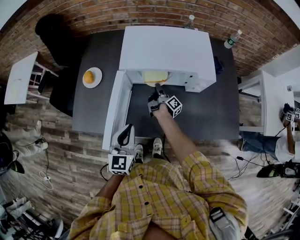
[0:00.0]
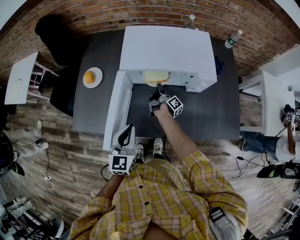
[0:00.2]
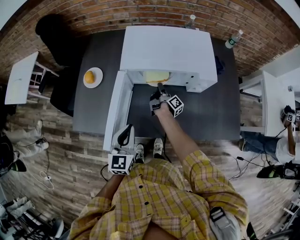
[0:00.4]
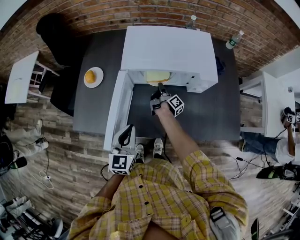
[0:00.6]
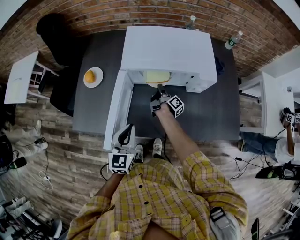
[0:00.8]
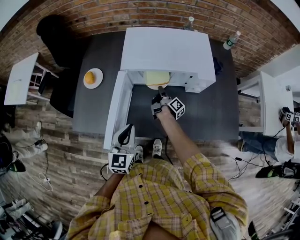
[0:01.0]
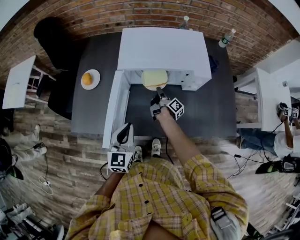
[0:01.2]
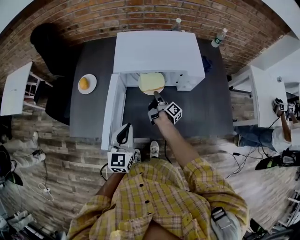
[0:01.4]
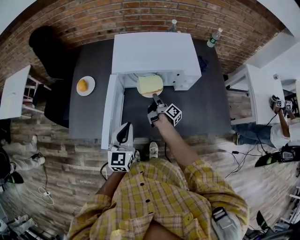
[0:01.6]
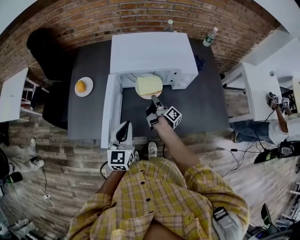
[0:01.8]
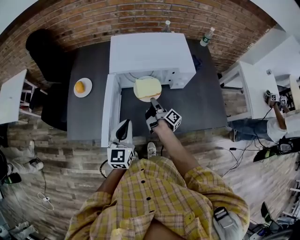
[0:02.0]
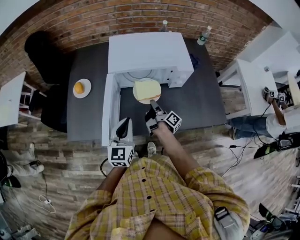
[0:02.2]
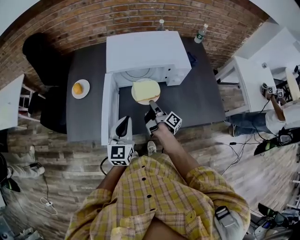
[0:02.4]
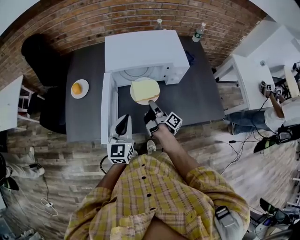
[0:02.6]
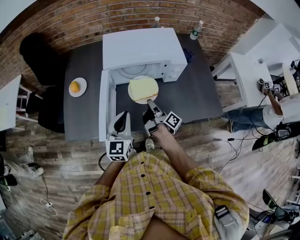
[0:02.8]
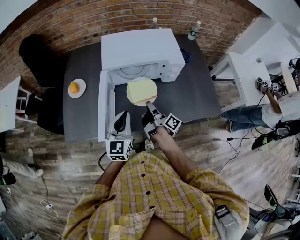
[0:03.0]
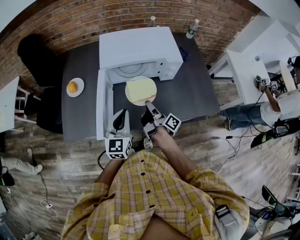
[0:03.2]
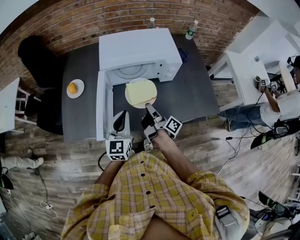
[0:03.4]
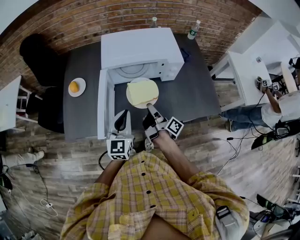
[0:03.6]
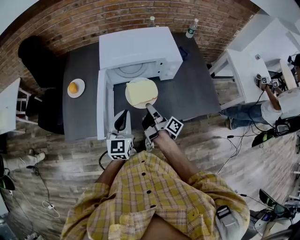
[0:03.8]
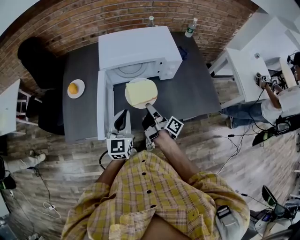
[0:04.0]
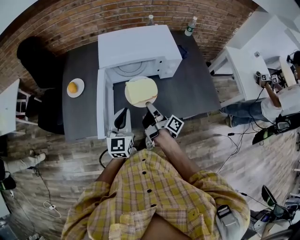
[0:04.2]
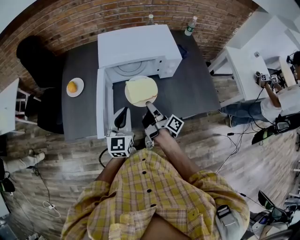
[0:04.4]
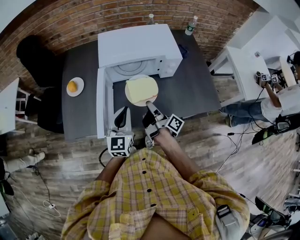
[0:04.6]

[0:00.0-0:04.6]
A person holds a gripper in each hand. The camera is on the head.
0:00.0 to 0:01.6: The right gripper heads backward, covering some 5 cm.
0:01.6 to 0:03.0: The right gripper heads backward and upward, covering some 15 cm.
0:03.0 to 0:04.6: The grippers make only small movements.

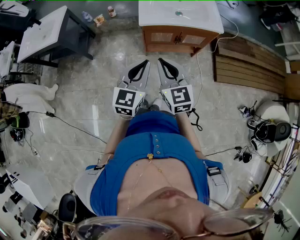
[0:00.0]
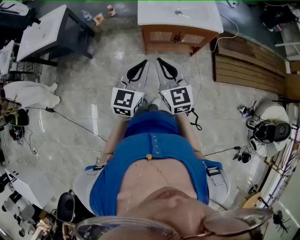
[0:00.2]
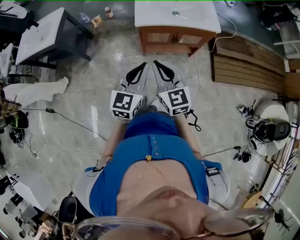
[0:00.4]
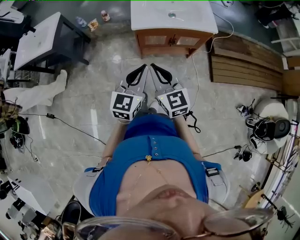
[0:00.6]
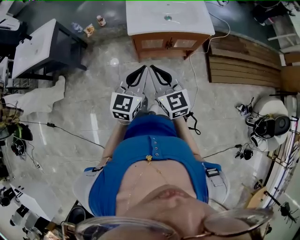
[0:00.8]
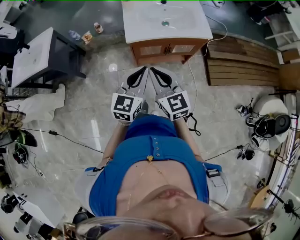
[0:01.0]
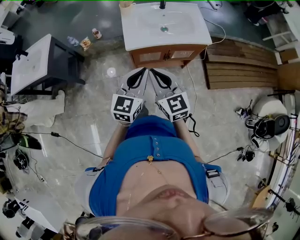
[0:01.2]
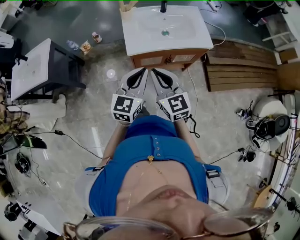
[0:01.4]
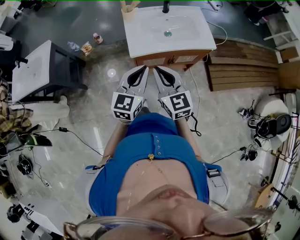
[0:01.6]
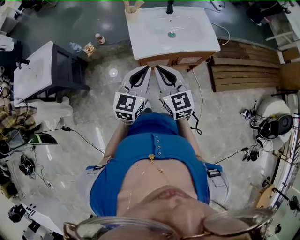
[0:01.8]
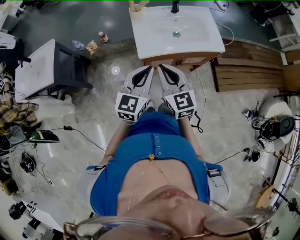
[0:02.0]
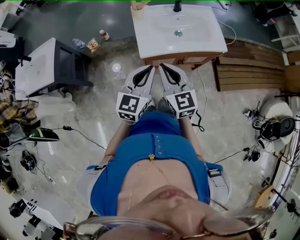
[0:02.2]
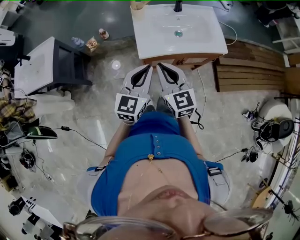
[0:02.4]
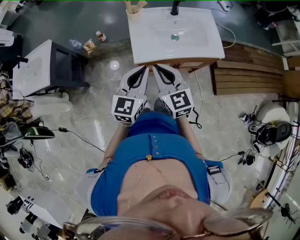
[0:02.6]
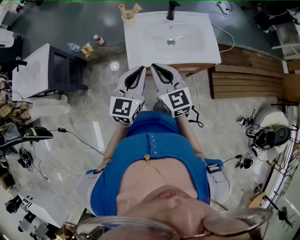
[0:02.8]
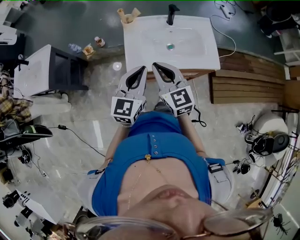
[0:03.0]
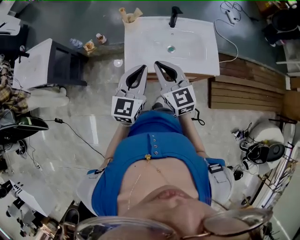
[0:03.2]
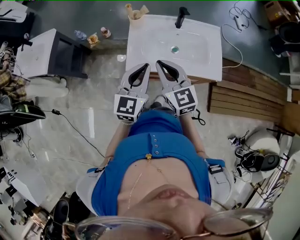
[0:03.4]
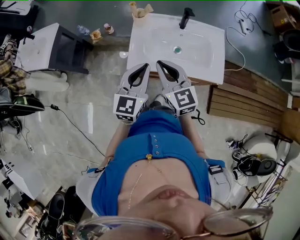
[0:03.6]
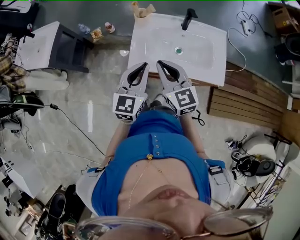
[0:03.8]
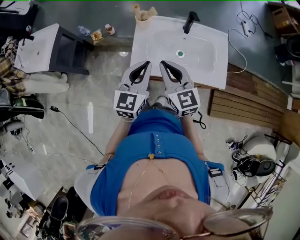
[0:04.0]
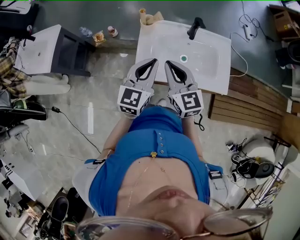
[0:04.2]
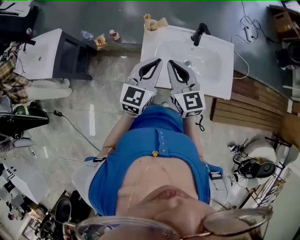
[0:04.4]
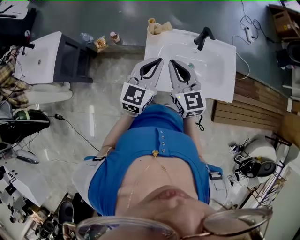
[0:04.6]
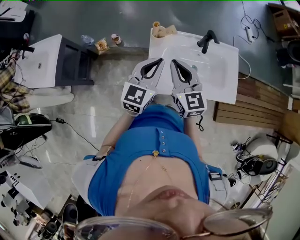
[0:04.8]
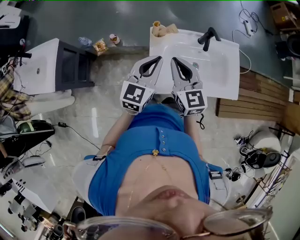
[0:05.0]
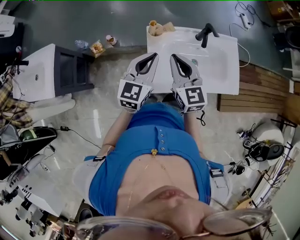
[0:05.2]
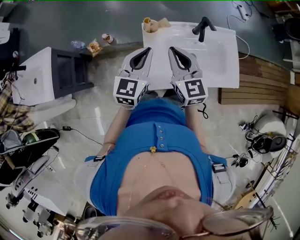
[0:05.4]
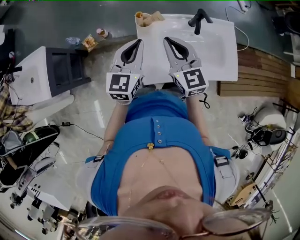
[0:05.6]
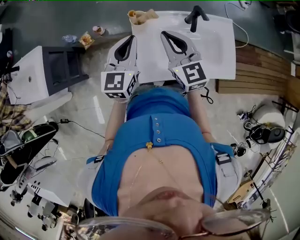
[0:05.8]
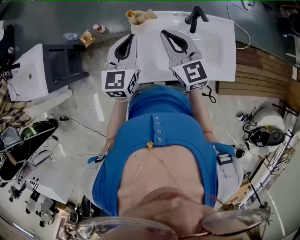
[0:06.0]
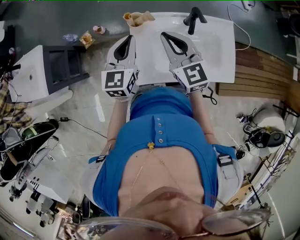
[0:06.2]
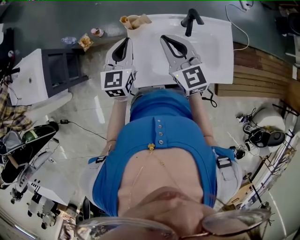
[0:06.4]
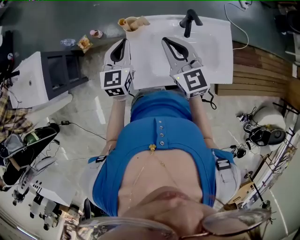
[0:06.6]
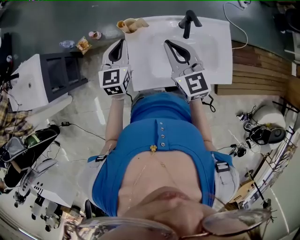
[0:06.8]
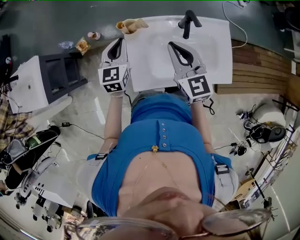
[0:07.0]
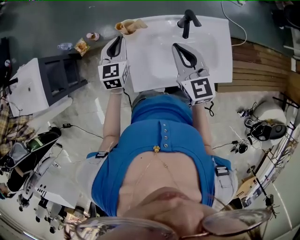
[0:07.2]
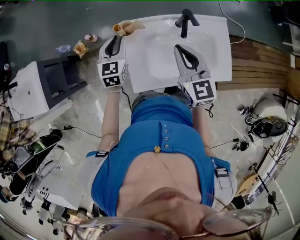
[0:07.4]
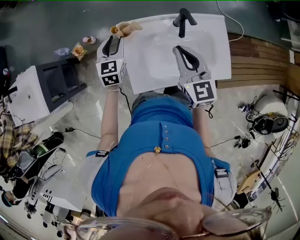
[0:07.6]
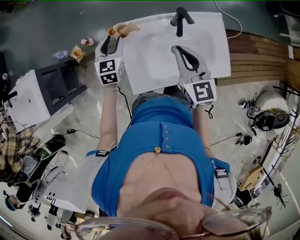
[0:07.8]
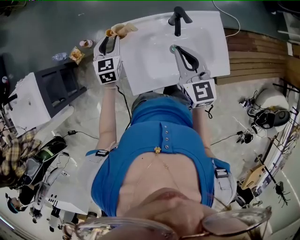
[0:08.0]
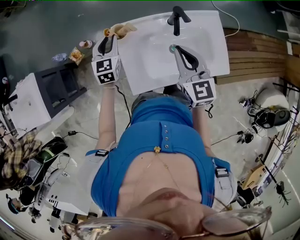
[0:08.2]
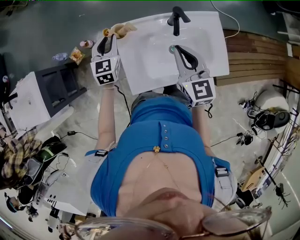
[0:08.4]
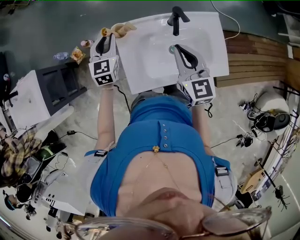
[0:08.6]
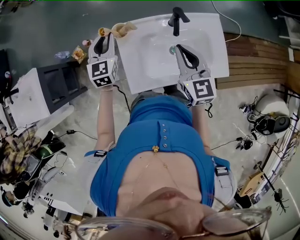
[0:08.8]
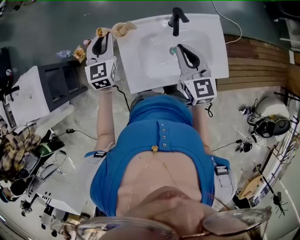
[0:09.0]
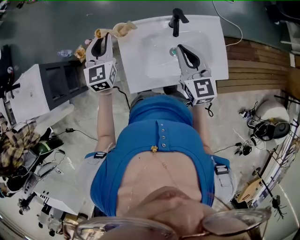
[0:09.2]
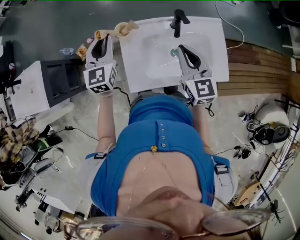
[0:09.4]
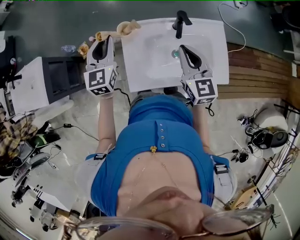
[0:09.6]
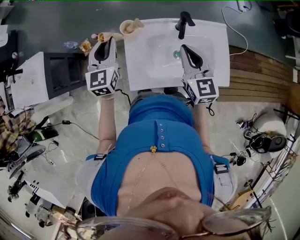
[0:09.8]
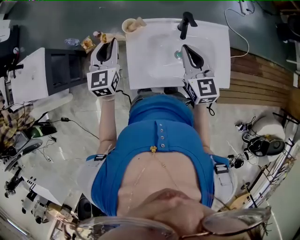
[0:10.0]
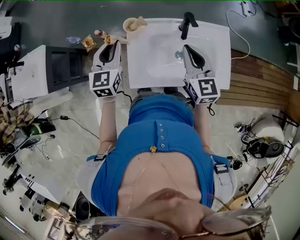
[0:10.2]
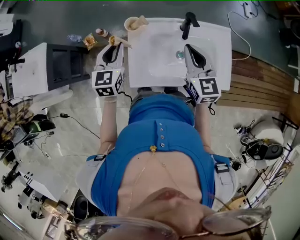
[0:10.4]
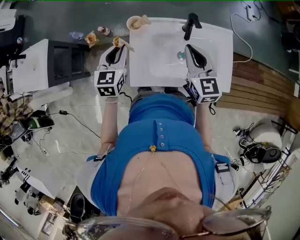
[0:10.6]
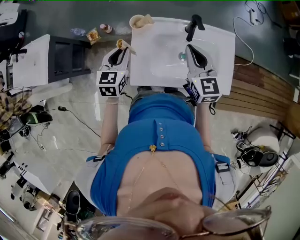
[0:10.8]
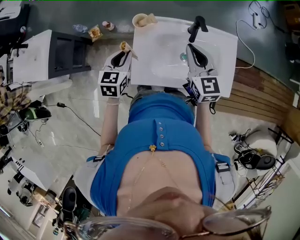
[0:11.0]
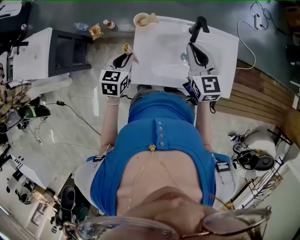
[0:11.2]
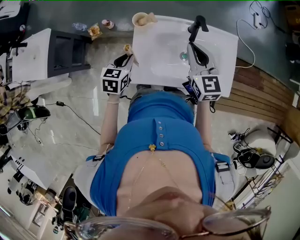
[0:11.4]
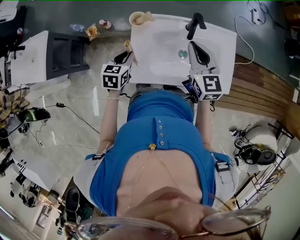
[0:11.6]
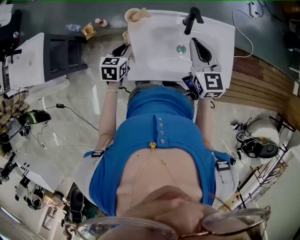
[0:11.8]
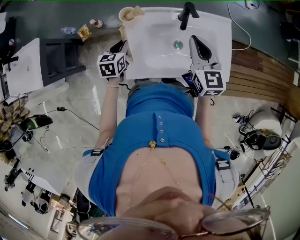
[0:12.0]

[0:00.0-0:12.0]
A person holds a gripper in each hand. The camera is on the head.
0:00.0 to 0:01.6: Both grippers travel together forward, roughly 20 cm.
0:01.6 to 0:03.0: Both grippers travel together forward, some 15 cm.
0:03.0 to 0:04.4: Both grippers travel together forward, some 15 cm.
0:04.4 to 0:06.0: The left gripper goes about 15 cm forward and to the left. Meanwhile the right gripper is displaced forward by approximately 15 cm.
0:06.0 to 0:07.6: The left gripper travels downward and forward by some 15 cm, and opens its fingers, while the right gripper goes roughly 10 cm to the right.
0:07.6 to 0:09.0: The left gripper travels upward by some 10 cm.
0:09.0 to 0:10.4: The left gripper heads backward, covering some 10 cm.
0:10.4 to 0:12.0: The left gripper goes about 15 cm downward, and swivels some 20 degrees.

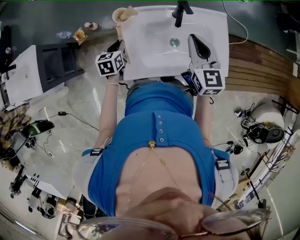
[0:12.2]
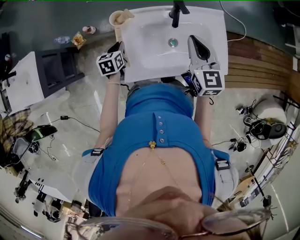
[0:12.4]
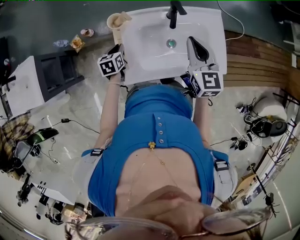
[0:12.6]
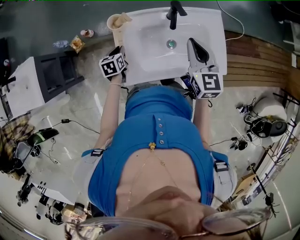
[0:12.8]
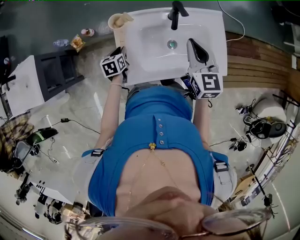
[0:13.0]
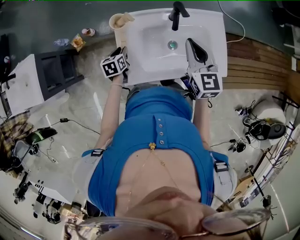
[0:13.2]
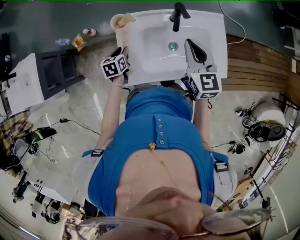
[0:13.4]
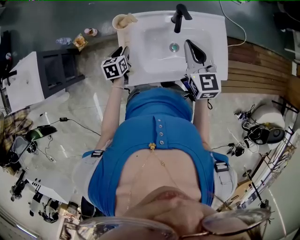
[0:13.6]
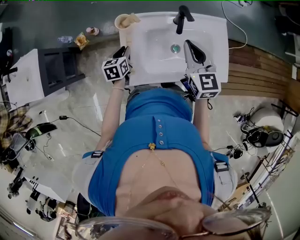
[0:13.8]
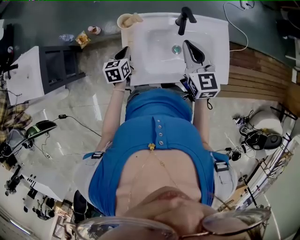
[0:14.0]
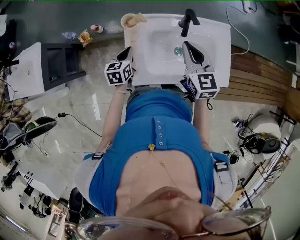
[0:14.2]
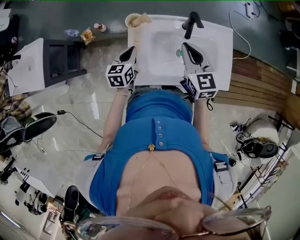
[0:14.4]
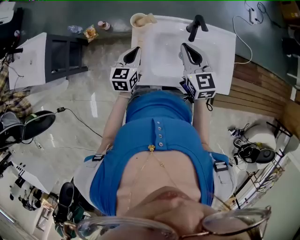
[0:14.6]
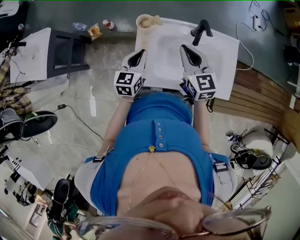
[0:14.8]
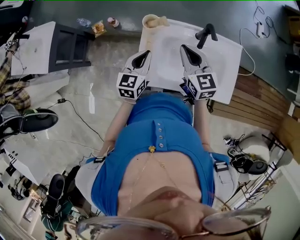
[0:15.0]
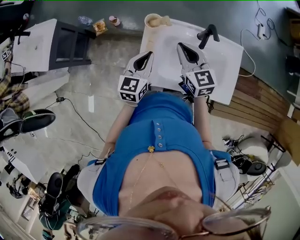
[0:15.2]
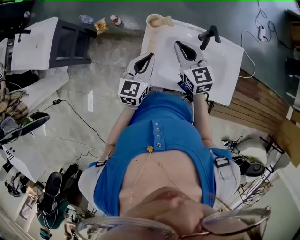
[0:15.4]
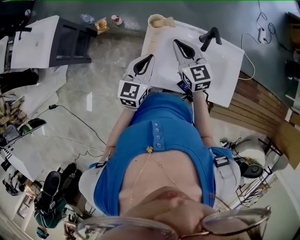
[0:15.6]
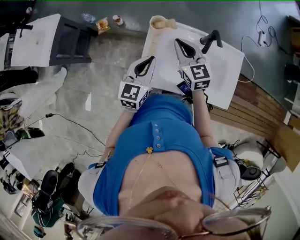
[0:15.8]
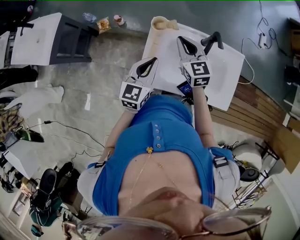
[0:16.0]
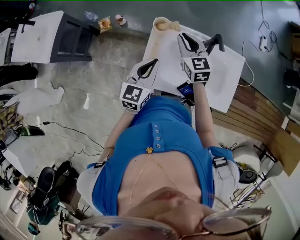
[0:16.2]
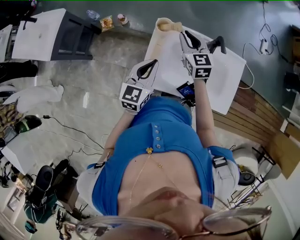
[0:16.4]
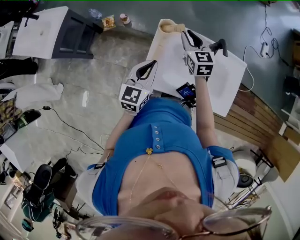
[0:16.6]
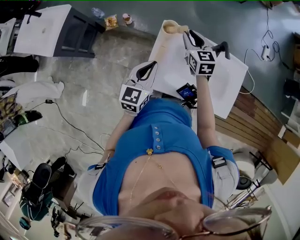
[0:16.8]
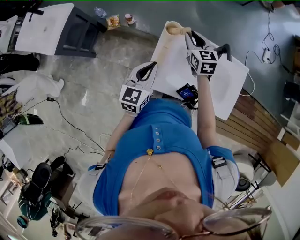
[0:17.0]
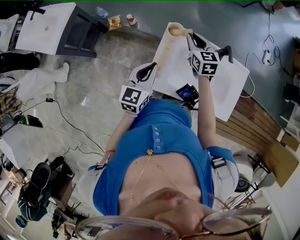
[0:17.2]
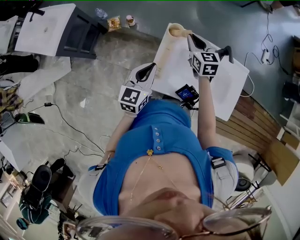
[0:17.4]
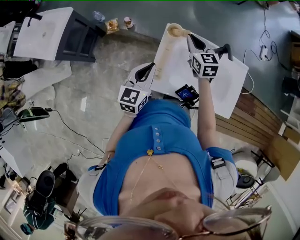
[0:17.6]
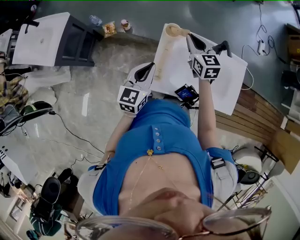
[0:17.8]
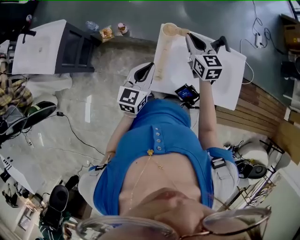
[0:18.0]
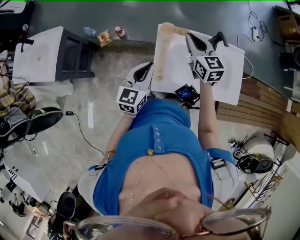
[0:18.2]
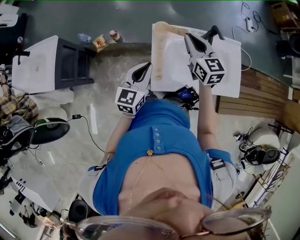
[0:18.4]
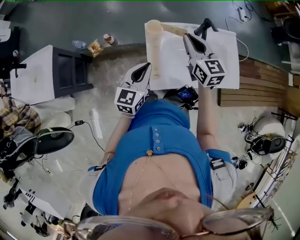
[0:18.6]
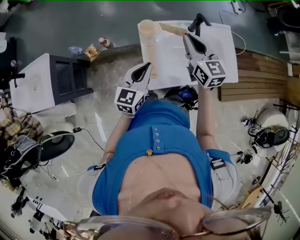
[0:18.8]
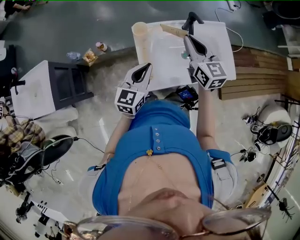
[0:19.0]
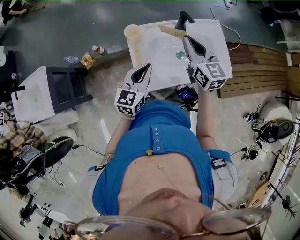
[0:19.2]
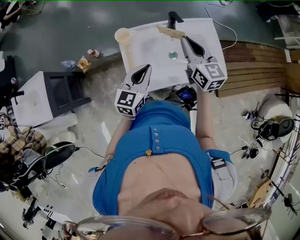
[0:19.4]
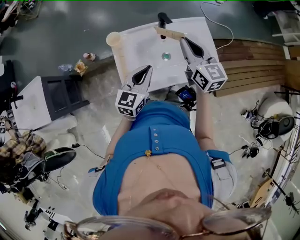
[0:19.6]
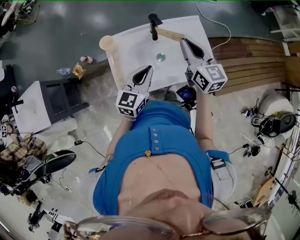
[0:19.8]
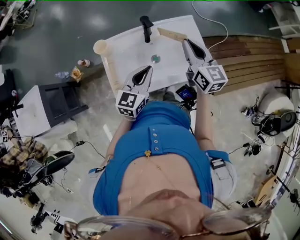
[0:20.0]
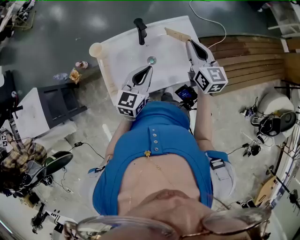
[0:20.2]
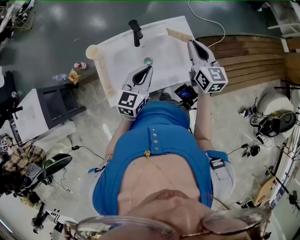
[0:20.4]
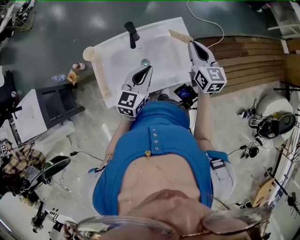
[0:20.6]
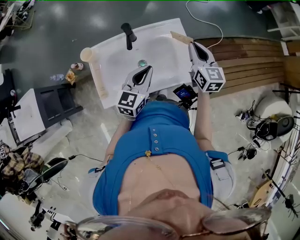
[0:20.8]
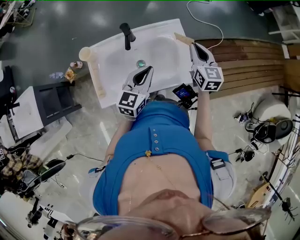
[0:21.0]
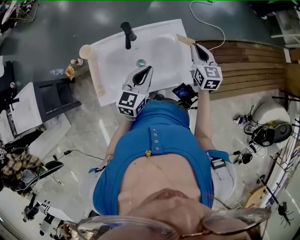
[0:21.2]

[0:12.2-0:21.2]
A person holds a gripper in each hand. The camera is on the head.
0:12.2 to 0:13.8: There are only small adjustments of the grippers.
0:13.8 to 0:15.2: The left gripper is displaced upward by about 15 cm, and rotates roughly 30 degrees. The right gripper travels to the left by roughly 15 cm, and swivels approximately 20 degrees.
0:15.2 to 0:16.6: The right gripper moves forward, some 10 cm.
0:16.6 to 0:18.2: The left gripper travels to the left by some 5 cm; the right gripper is displaced upward by roughly 5 cm.
0:18.2 to 0:19.8: The grippers both shift to the right by roughly 25 cm. The left gripper changes its angle by about 20 degrees; the right gripper swivels some 20 degrees.
0:19.8 to 0:21.2: The left gripper moves to the right and forward, roughly 15 cm. Meanwhile the right gripper travels to the right, downward and forward by roughly 25 cm.
